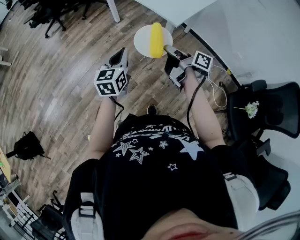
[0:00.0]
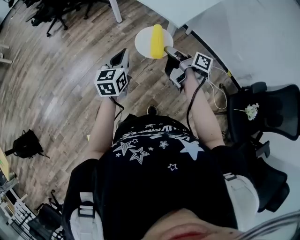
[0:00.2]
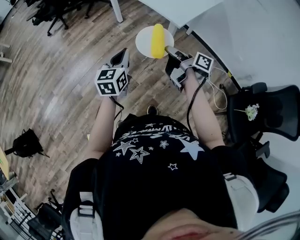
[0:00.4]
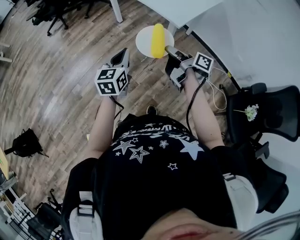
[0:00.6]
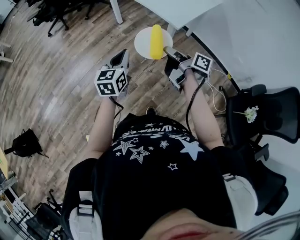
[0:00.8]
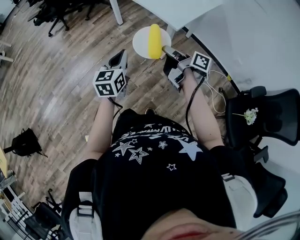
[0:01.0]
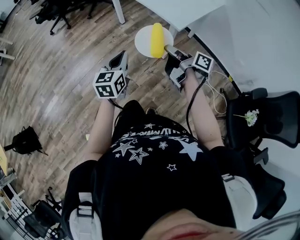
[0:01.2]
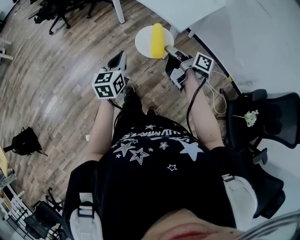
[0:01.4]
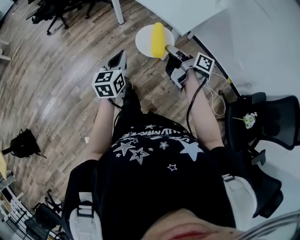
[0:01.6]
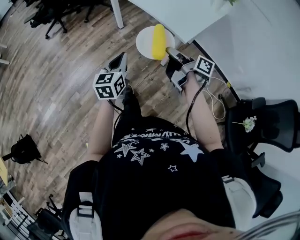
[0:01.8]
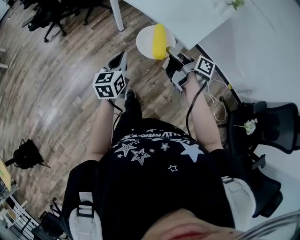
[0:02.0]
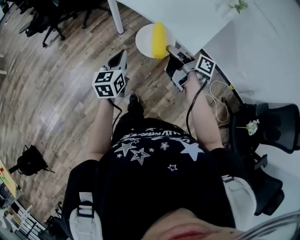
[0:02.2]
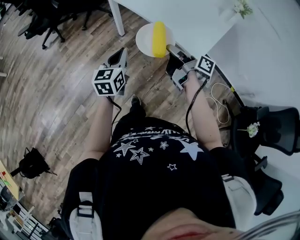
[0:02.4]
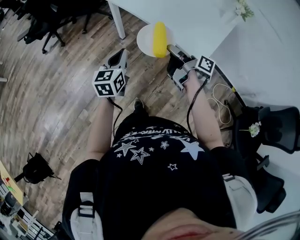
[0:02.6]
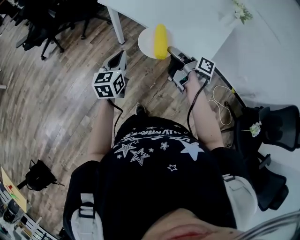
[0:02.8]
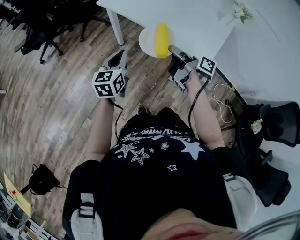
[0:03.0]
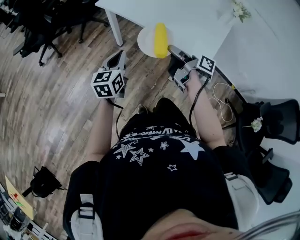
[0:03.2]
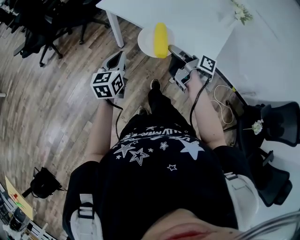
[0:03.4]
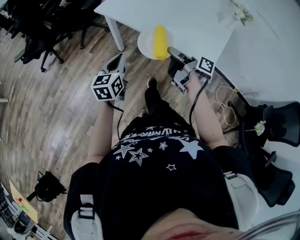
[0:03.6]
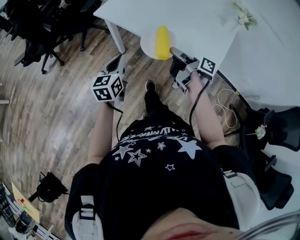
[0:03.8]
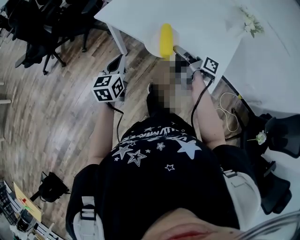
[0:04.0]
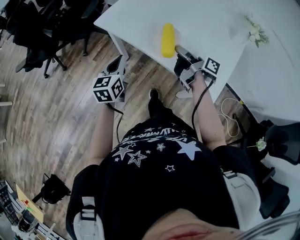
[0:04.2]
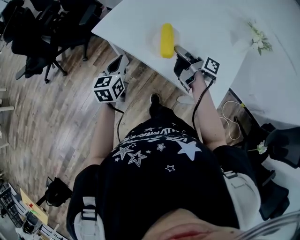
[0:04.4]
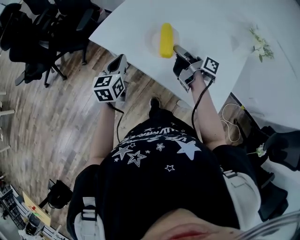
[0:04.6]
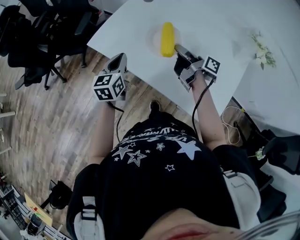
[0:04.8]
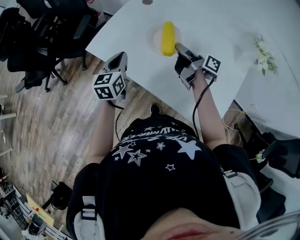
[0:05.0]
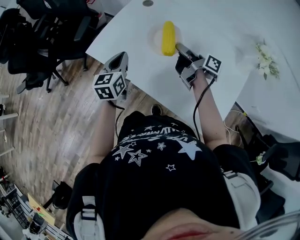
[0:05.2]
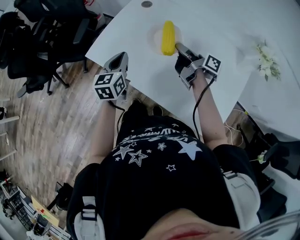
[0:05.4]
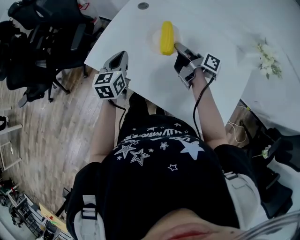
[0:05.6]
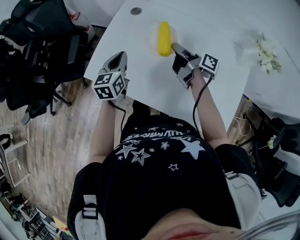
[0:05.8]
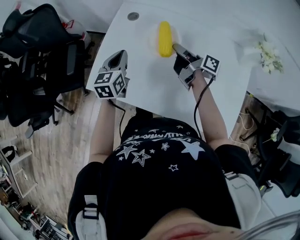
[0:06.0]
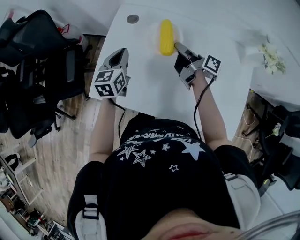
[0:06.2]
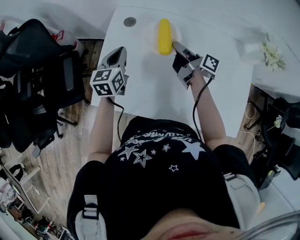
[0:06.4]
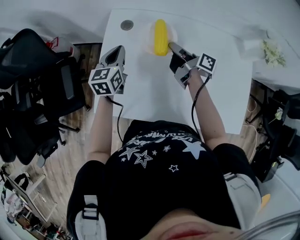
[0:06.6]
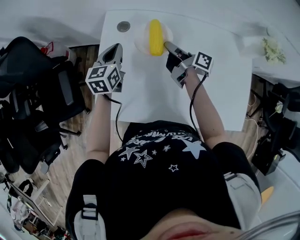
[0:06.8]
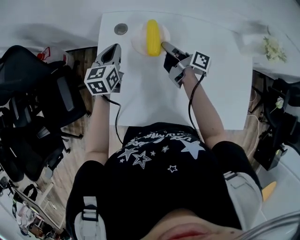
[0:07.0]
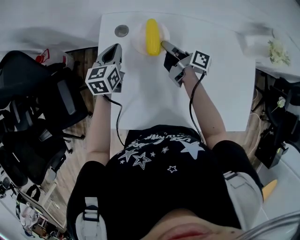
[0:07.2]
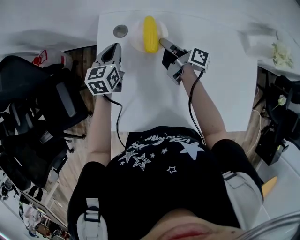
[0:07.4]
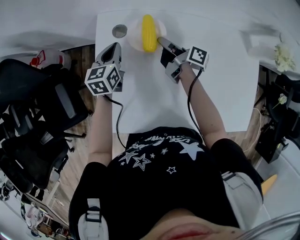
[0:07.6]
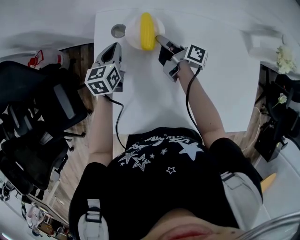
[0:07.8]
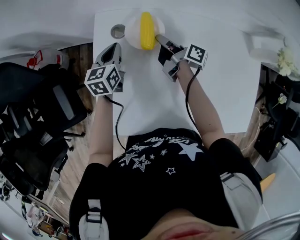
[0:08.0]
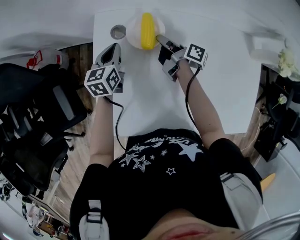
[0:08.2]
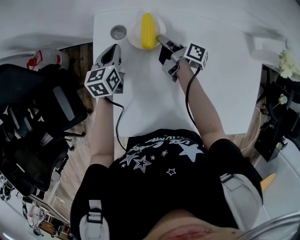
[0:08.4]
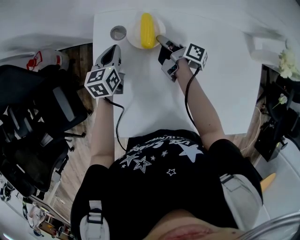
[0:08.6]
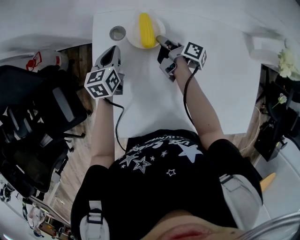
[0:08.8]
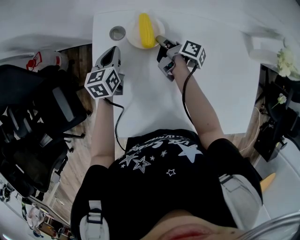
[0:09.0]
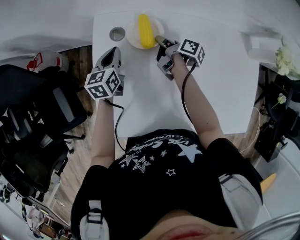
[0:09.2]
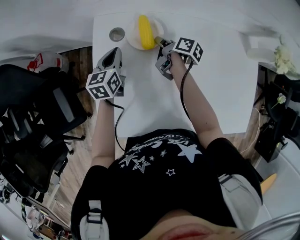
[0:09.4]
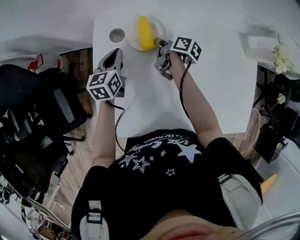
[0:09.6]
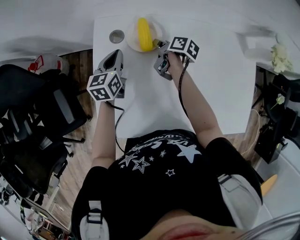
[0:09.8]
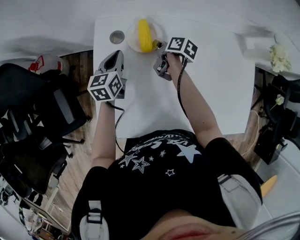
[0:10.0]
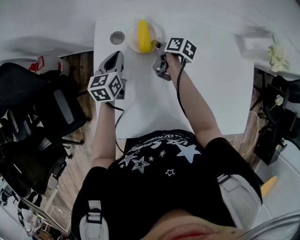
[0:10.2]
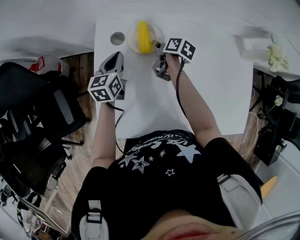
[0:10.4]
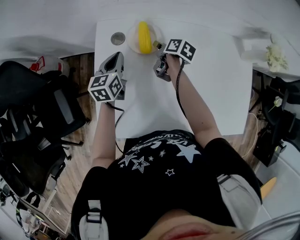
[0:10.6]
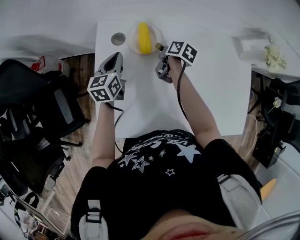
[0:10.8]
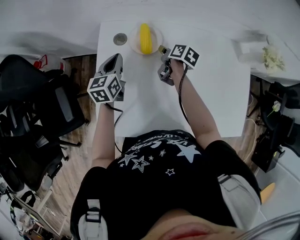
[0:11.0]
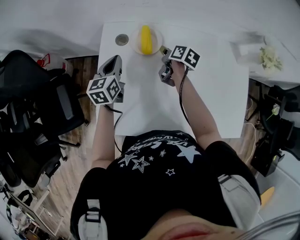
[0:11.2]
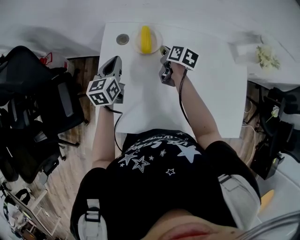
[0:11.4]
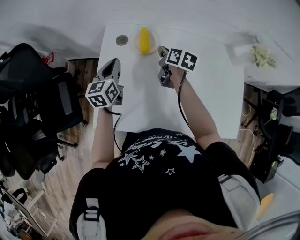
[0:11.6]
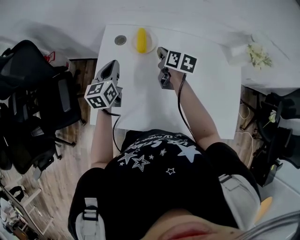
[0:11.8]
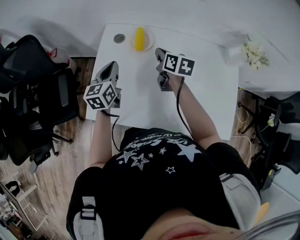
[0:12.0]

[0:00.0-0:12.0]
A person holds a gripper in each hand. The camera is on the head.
0:00.0 to 0:01.6: The left gripper shifts by roughly 5 cm.
0:01.6 to 0:03.0: The left gripper moves some 35 cm.
0:03.0 to 0:04.4: The left gripper moves about 30 cm.
0:04.4 to 0:06.0: The left gripper ends up approximately 35 cm from where it was.
0:06.0 to 0:07.6: The left gripper moves some 25 cm.
0:10.4 to 0:12.0: The left gripper shifts by roughly 20 cm.

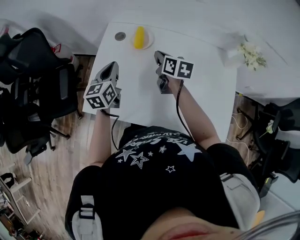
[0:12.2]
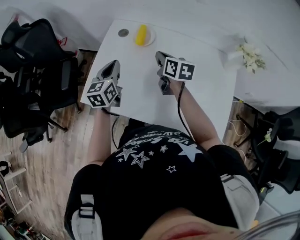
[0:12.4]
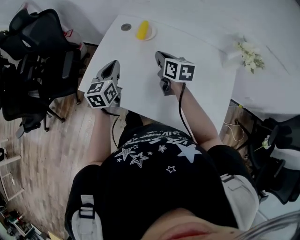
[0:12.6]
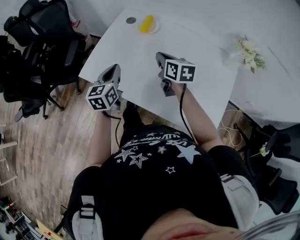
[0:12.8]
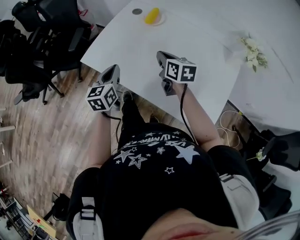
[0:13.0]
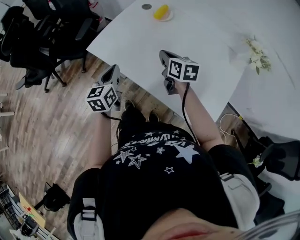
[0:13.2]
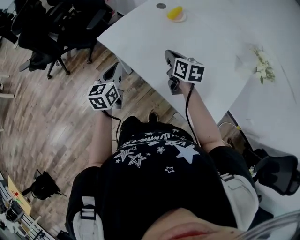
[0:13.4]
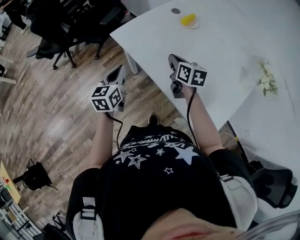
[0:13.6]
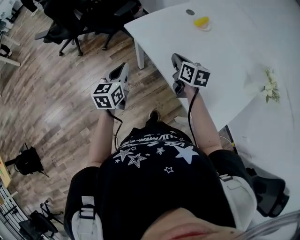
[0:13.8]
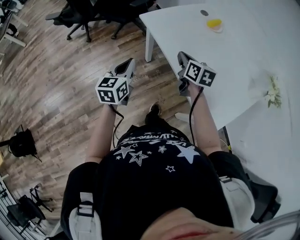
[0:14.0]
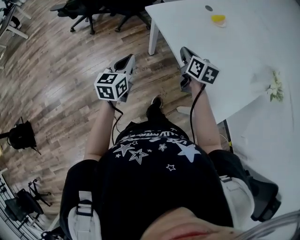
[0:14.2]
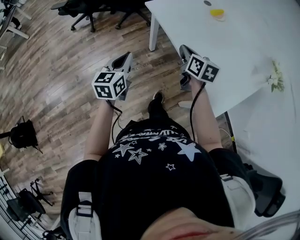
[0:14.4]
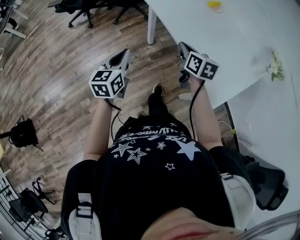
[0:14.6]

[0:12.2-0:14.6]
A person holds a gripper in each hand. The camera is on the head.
0:12.2 to 0:13.4: The left gripper moves about 35 cm, and swivels some 30 degrees.
0:13.4 to 0:14.6: The left gripper shifts by roughly 30 cm.

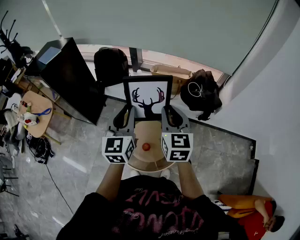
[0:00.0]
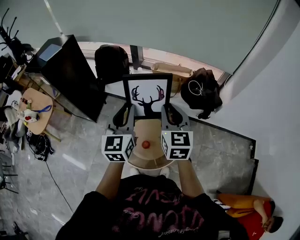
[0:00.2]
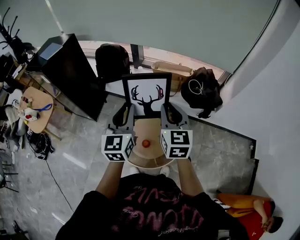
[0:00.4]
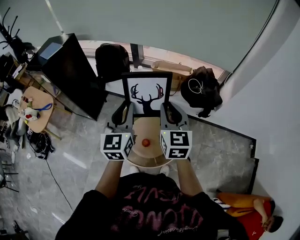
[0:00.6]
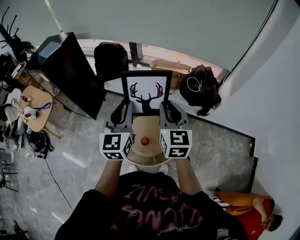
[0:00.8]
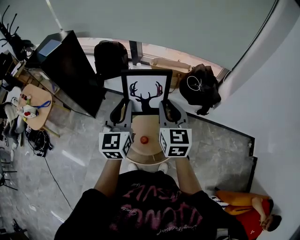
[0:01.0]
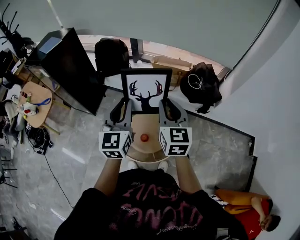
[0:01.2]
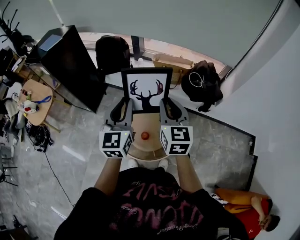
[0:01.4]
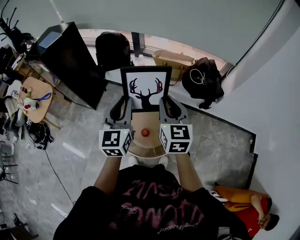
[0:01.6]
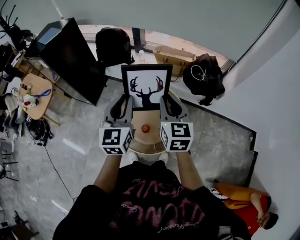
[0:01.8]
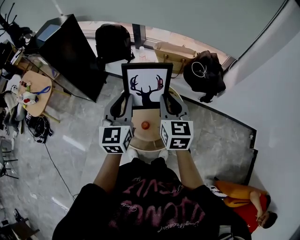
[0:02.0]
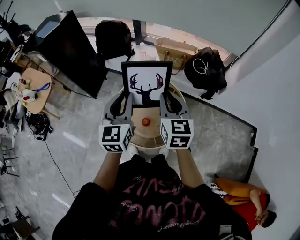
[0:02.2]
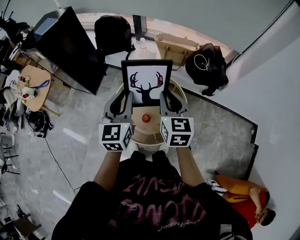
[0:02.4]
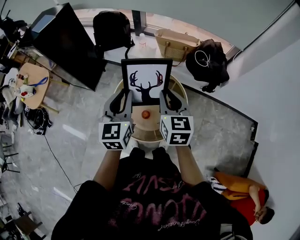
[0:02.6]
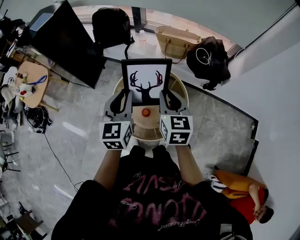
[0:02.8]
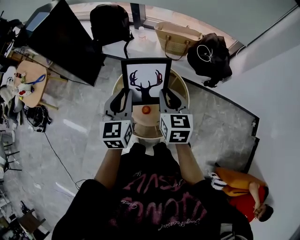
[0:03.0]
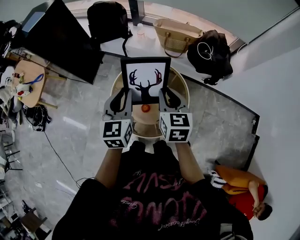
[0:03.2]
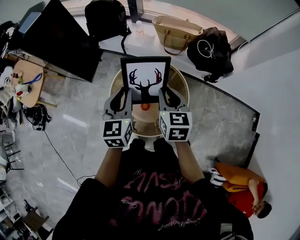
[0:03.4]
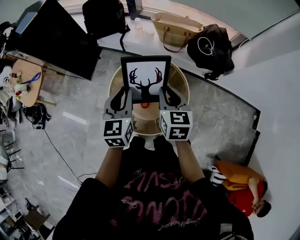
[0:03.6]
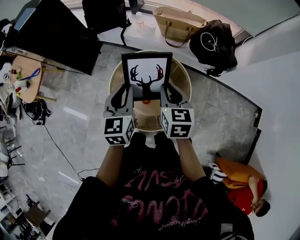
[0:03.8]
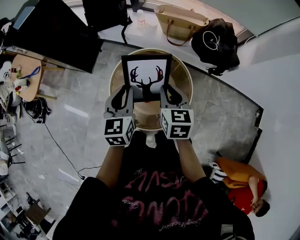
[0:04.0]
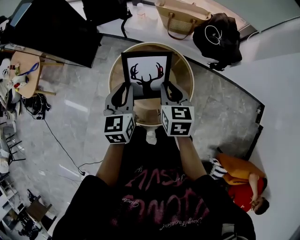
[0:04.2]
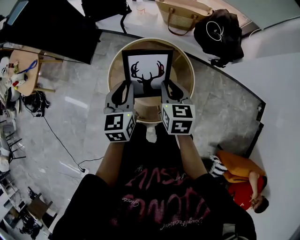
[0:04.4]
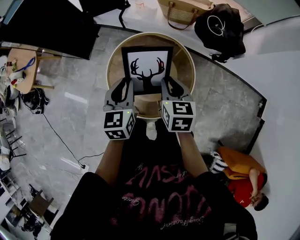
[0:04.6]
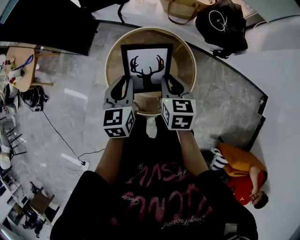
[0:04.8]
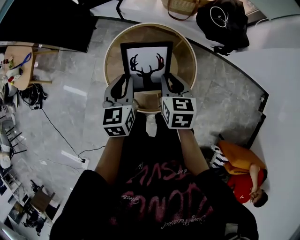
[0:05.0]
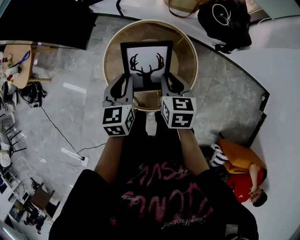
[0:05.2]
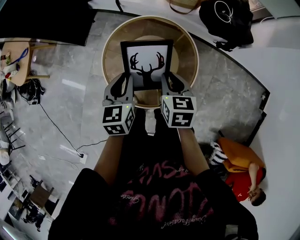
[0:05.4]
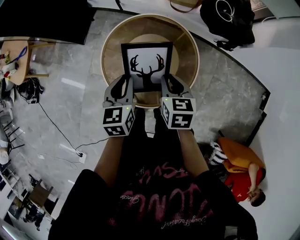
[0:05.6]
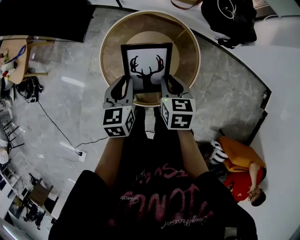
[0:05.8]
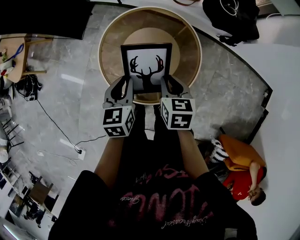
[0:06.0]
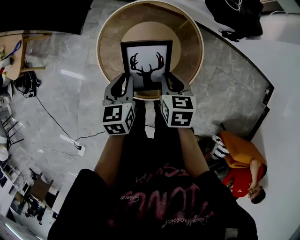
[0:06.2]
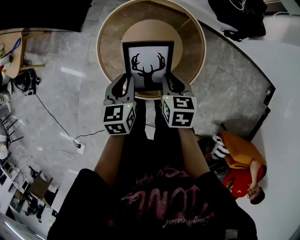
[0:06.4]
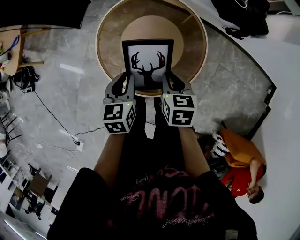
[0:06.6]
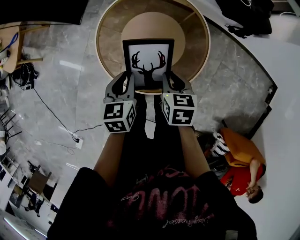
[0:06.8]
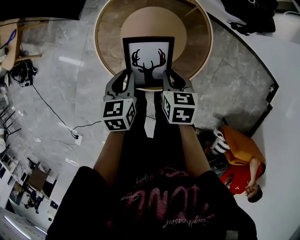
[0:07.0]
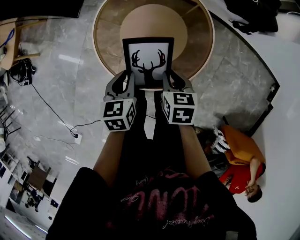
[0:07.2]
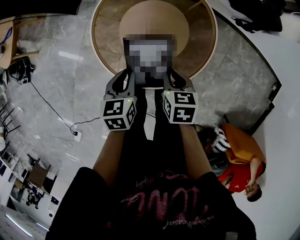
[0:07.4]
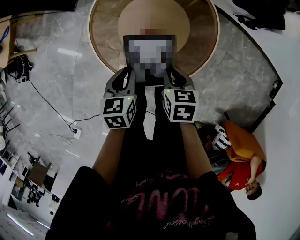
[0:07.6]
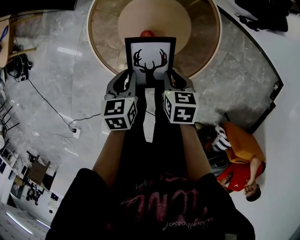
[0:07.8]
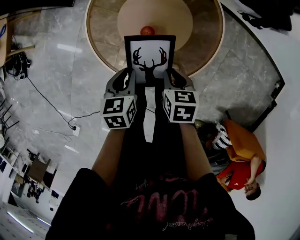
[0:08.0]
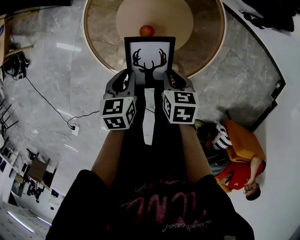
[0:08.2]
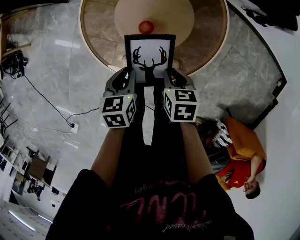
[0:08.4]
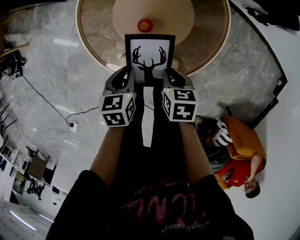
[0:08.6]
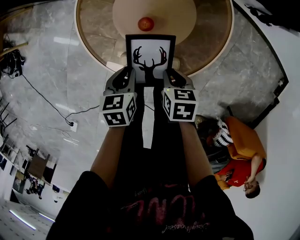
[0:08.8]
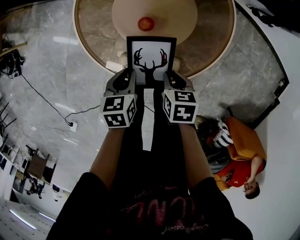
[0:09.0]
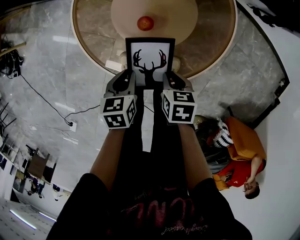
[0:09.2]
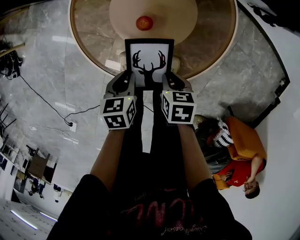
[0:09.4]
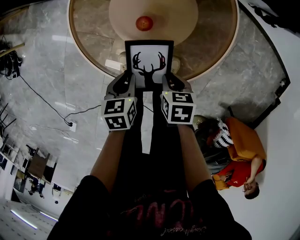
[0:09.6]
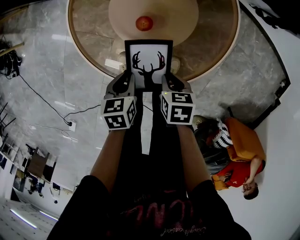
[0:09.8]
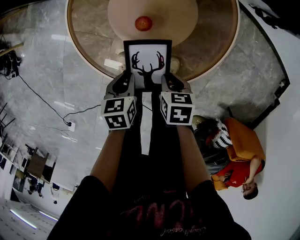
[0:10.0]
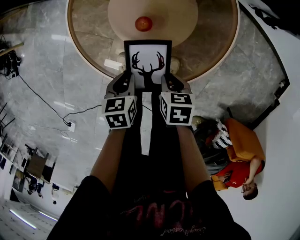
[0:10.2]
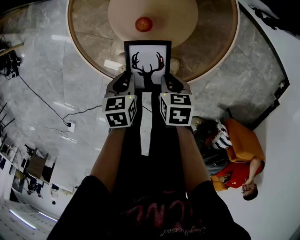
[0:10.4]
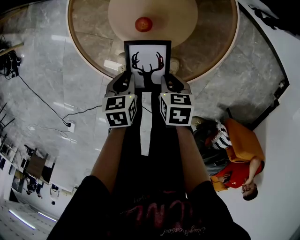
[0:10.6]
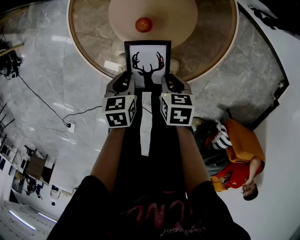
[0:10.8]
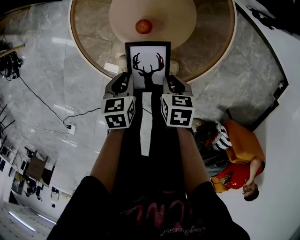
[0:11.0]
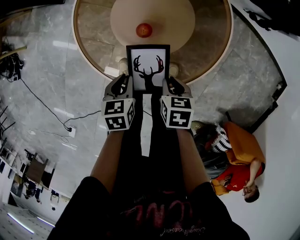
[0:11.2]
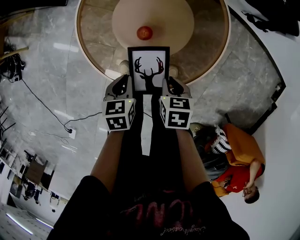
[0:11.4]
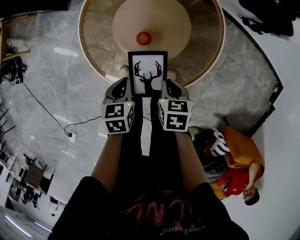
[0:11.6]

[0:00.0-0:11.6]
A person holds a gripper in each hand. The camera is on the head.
0:00.0 to 0:01.4: The grippers make only small movements.
0:01.4 to 0:02.8: Both grippers travel together downward, about 10 cm.
0:02.8 to 0:04.4: The two grippers go approximately 10 cm downward.
0:04.4 to 0:05.8: Both grippers travel together downward and backward, roughly 15 cm.
0:05.8 to 0:07.2: Both grippers move downward and backward, some 15 cm.
0:07.2 to 0:08.8: The grippers both shift downward and backward by approximately 15 cm.
0:08.8 to 0:10.2: The left gripper heads downward, covering some 5 cm.
0:10.2 to 0:11.6: Both grippers move upward, roughly 5 cm.
